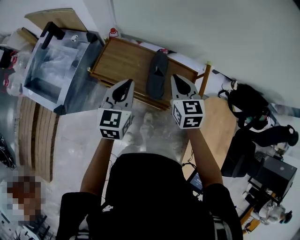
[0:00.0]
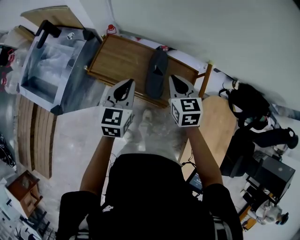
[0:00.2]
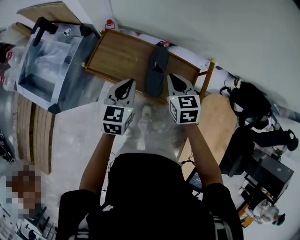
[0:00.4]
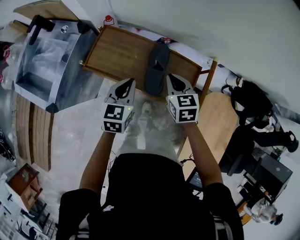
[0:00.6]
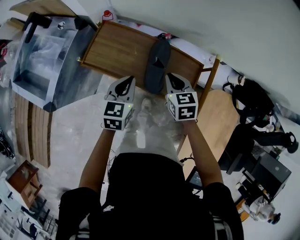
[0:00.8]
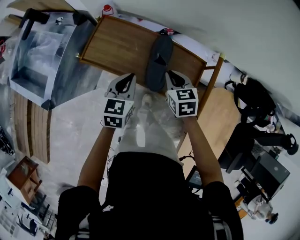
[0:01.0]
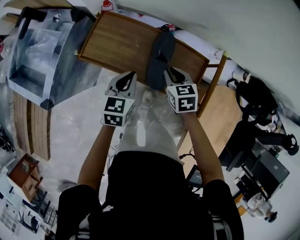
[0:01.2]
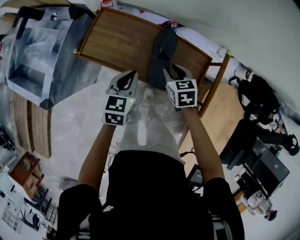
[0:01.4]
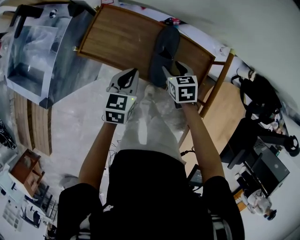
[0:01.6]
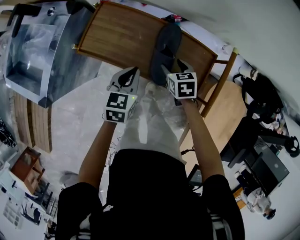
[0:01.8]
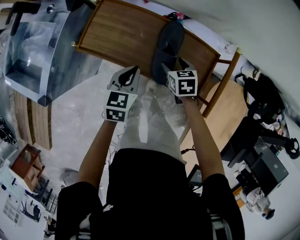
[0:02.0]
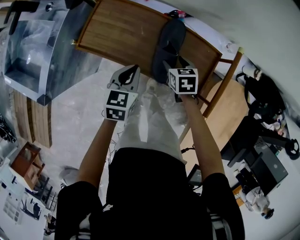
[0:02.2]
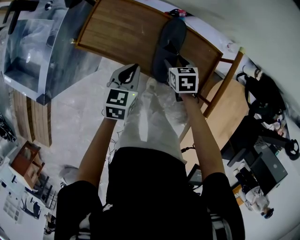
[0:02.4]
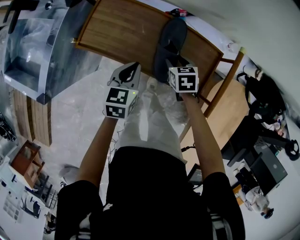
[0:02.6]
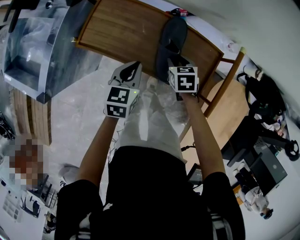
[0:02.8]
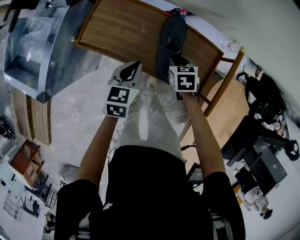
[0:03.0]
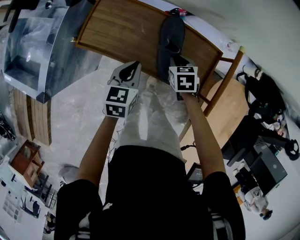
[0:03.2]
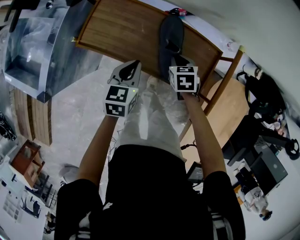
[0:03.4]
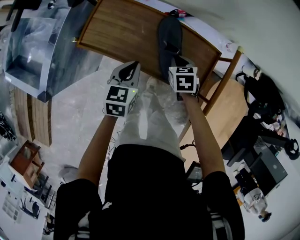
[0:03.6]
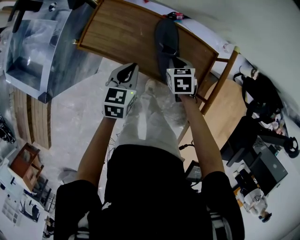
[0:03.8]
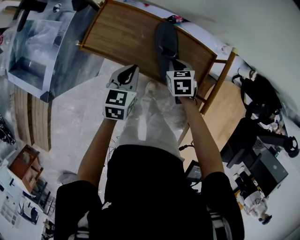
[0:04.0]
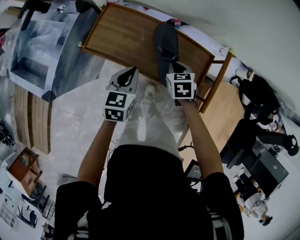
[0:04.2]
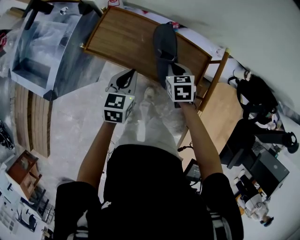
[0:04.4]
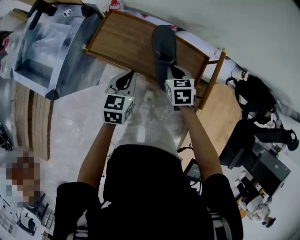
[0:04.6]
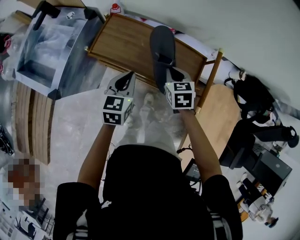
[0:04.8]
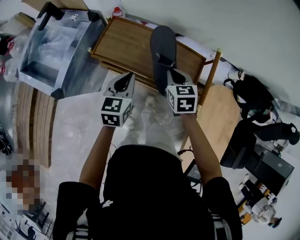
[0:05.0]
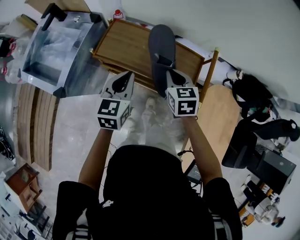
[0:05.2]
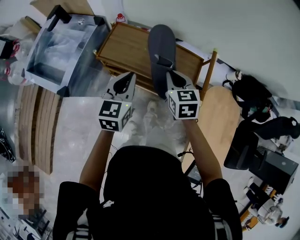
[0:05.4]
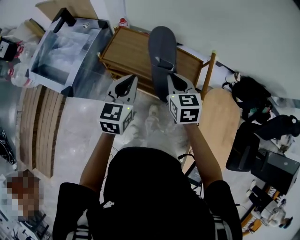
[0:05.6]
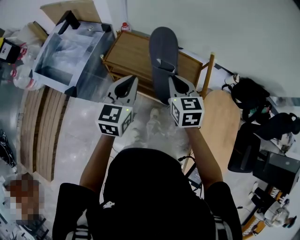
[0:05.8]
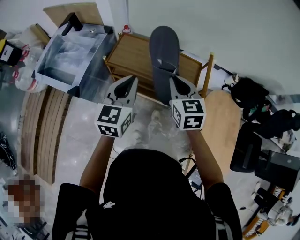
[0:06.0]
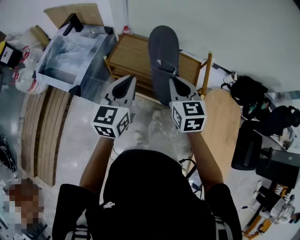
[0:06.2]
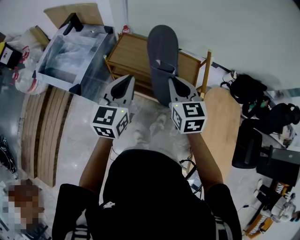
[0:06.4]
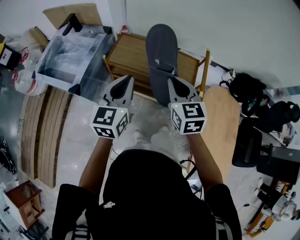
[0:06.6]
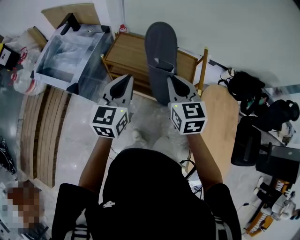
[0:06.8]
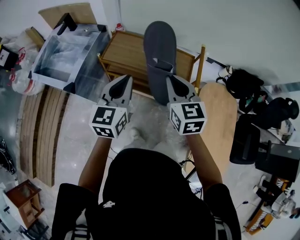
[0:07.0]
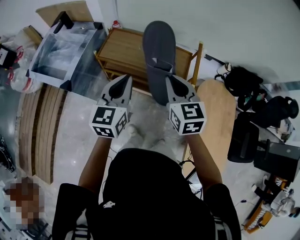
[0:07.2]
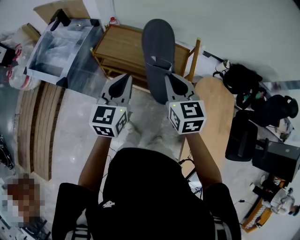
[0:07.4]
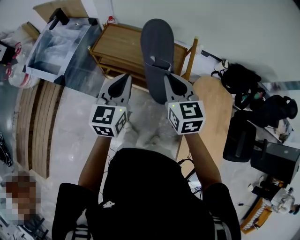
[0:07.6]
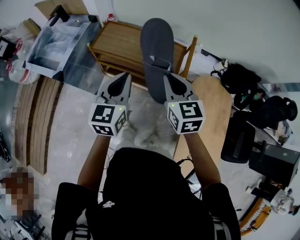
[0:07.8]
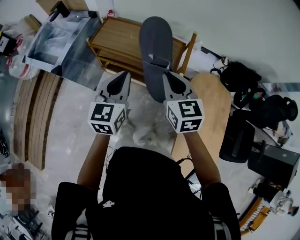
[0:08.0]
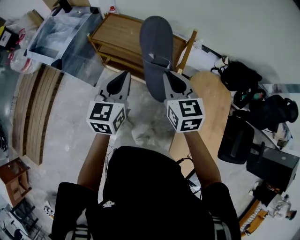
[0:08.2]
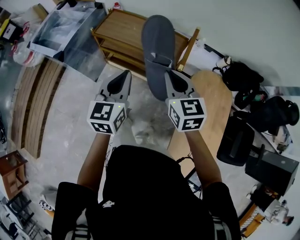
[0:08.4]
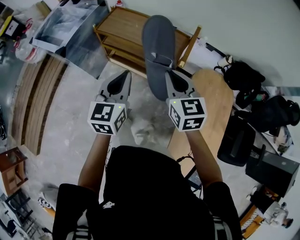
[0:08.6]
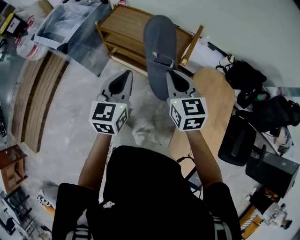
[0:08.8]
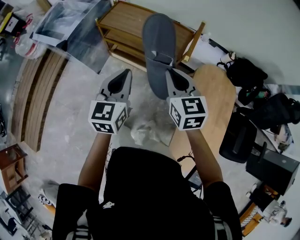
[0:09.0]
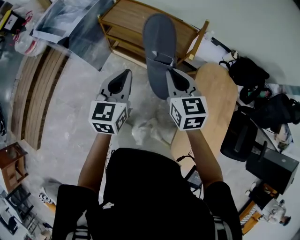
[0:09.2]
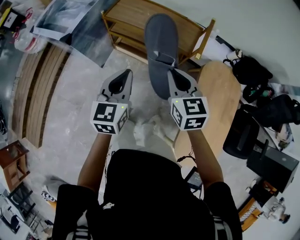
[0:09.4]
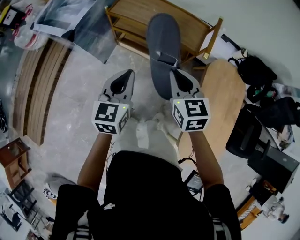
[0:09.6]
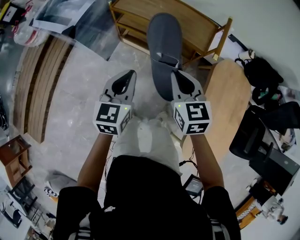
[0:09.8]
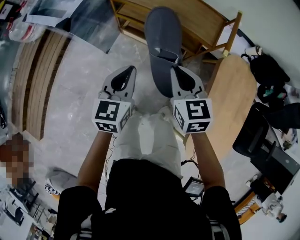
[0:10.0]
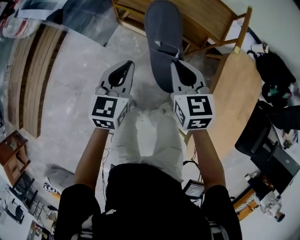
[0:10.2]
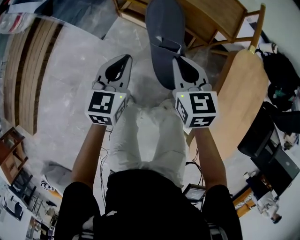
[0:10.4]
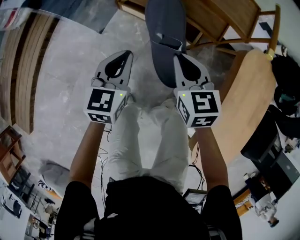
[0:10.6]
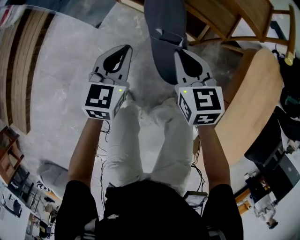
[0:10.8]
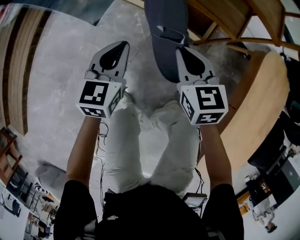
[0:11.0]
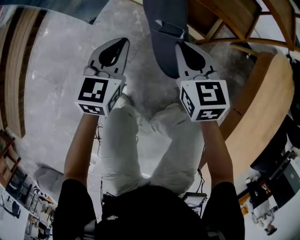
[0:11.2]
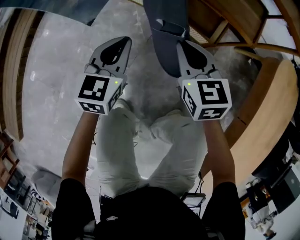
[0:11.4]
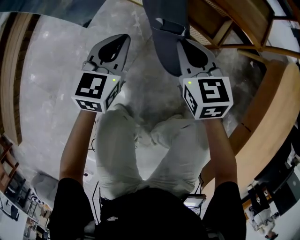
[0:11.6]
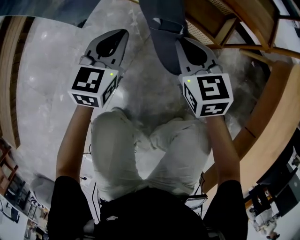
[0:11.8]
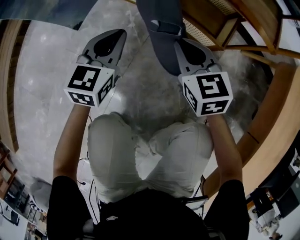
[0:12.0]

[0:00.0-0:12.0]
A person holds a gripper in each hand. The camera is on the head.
0:00.0 to 0:01.6: The grippers both shift downward by about 25 cm. The left gripper changes its angle by some 20 degrees. The right gripper turns by roughly 30 degrees, and opens.
0:01.6 to 0:03.0: The right gripper moves downward, roughly 5 cm, and closes up.
0:03.0 to 0:04.4: The grippers both shift upward by about 10 cm. The right gripper closes.
0:04.4 to 0:06.0: The two grippers go approximately 30 cm upward and backward. The left gripper swivels roughly 20 degrees. The right gripper swivels roughly 30 degrees.
0:06.0 to 0:07.6: Both grippers travel together to the right and backward, some 10 cm.
0:07.6 to 0:09.0: The grippers both shift backward by roughly 15 cm.
0:09.0 to 0:10.4: Both grippers travel together downward and to the left, roughly 30 cm.
0:10.4 to 0:12.0: Both grippers move downward, some 40 cm.

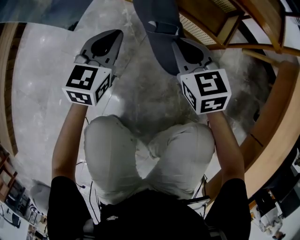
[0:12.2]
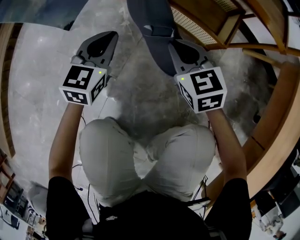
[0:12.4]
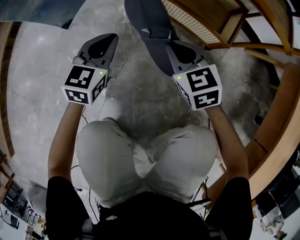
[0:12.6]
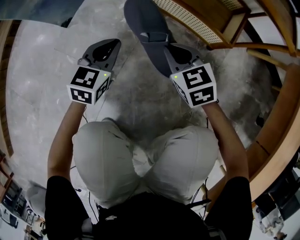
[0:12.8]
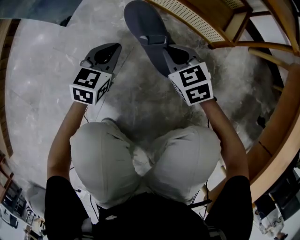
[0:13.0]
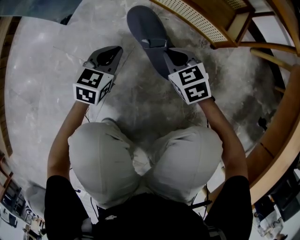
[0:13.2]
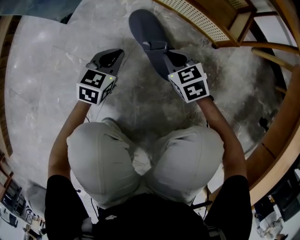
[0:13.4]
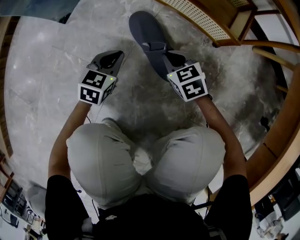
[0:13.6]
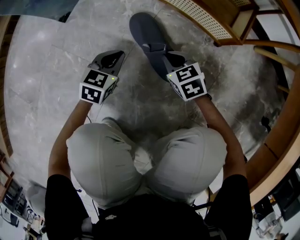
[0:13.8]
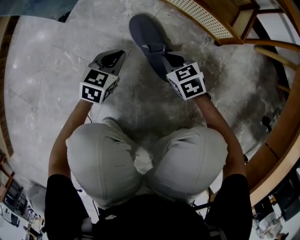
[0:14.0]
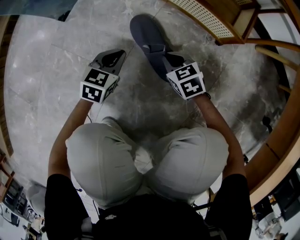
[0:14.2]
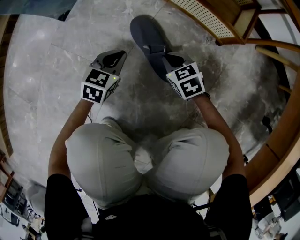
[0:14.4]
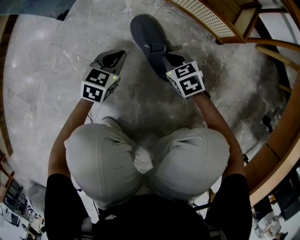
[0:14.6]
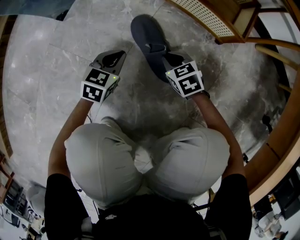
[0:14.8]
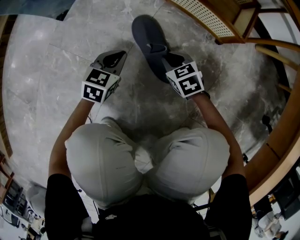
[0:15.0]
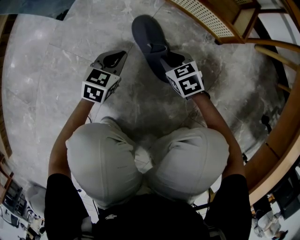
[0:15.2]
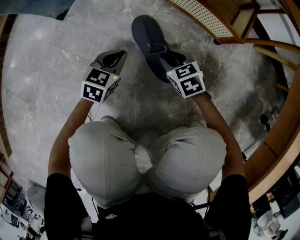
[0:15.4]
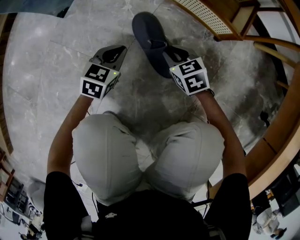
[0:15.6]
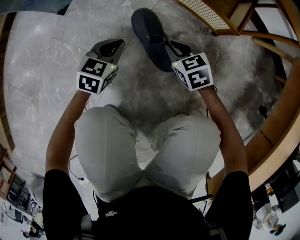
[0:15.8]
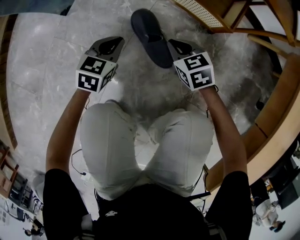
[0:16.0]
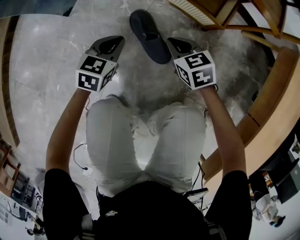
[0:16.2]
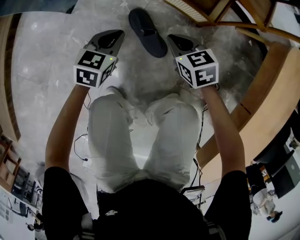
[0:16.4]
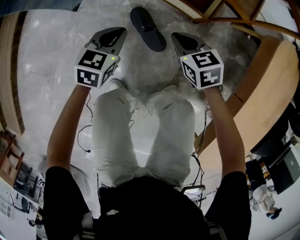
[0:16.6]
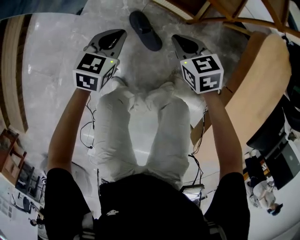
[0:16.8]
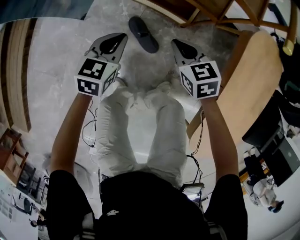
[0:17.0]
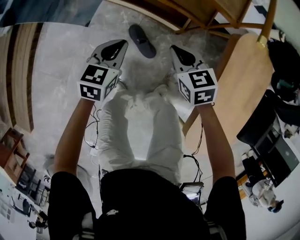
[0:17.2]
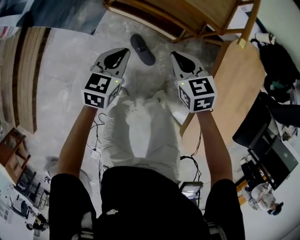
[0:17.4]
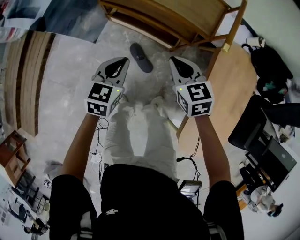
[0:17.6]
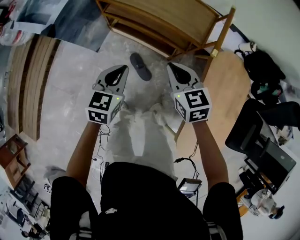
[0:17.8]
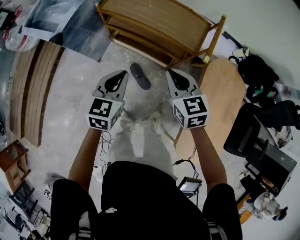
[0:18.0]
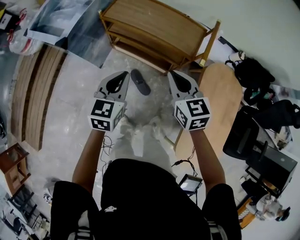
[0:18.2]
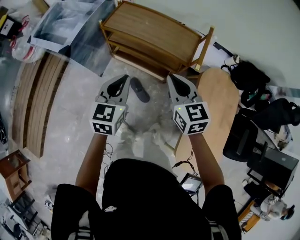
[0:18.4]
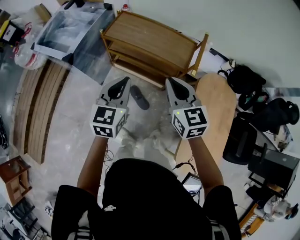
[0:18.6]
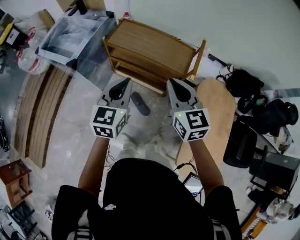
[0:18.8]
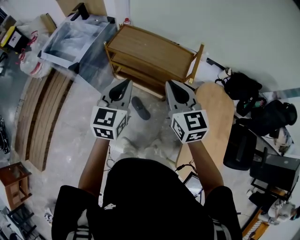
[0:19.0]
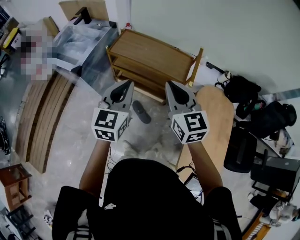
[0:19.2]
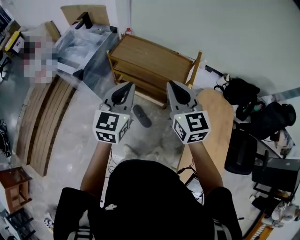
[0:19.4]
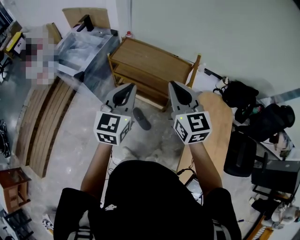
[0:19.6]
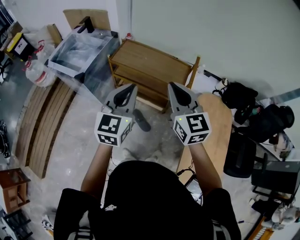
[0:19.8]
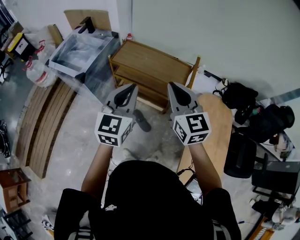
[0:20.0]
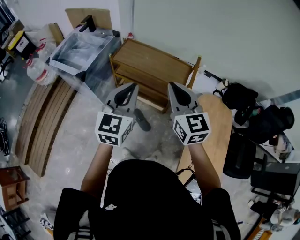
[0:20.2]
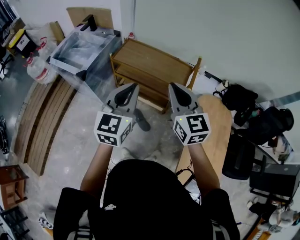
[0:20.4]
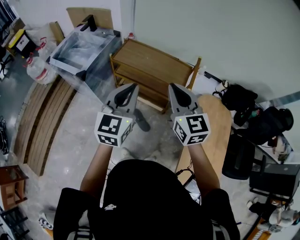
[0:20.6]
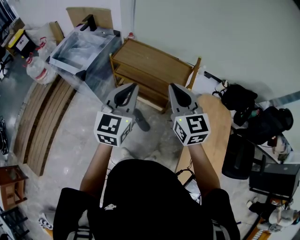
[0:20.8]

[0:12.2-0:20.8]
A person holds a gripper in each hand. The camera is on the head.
0:12.2 to 0:13.6: Both grippers move downward, some 20 cm.
0:13.6 to 0:15.0: The right gripper shifts roughly 5 cm downward.
0:15.0 to 0:16.6: The two grippers go some 30 cm upward.
0:16.6 to 0:18.0: The two grippers go approximately 50 cm upward. The right gripper turns by about 20 degrees.
0:18.0 to 0:19.4: Both grippers move upward, some 25 cm. The left gripper changes its angle by roughly 20 degrees, while the right gripper swivels about 20 degrees.
0:19.4 to 0:20.8: There are only small adjustments of the grippers.

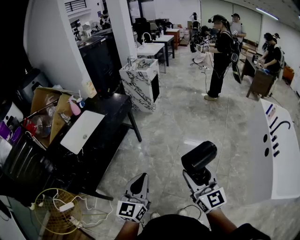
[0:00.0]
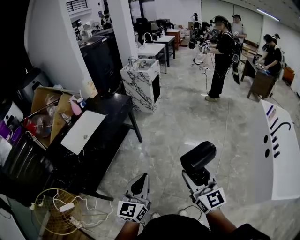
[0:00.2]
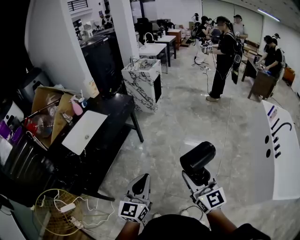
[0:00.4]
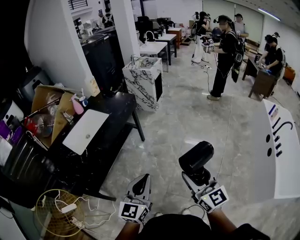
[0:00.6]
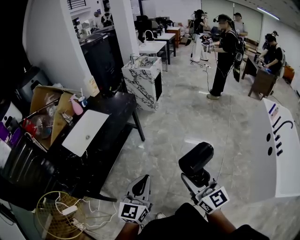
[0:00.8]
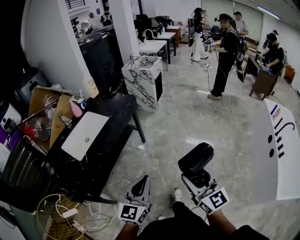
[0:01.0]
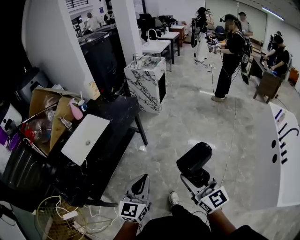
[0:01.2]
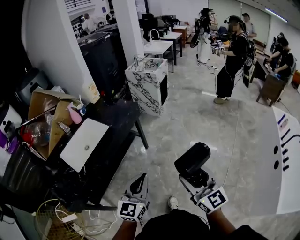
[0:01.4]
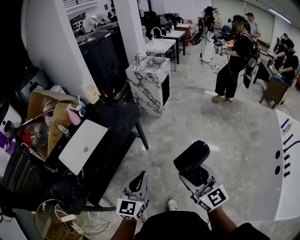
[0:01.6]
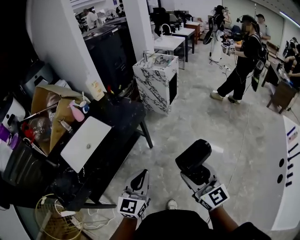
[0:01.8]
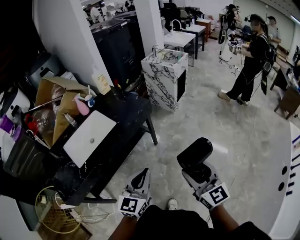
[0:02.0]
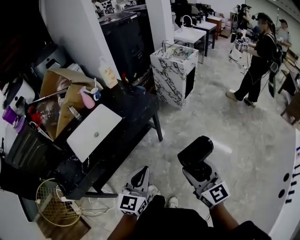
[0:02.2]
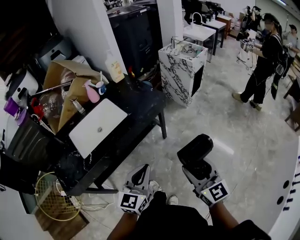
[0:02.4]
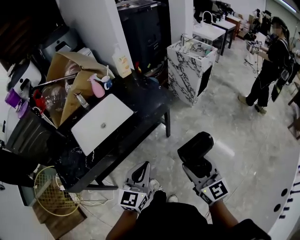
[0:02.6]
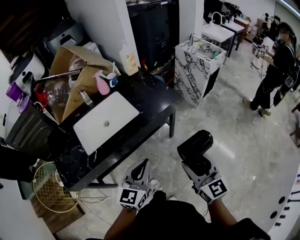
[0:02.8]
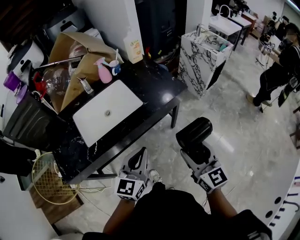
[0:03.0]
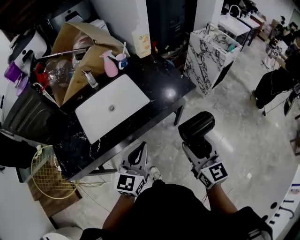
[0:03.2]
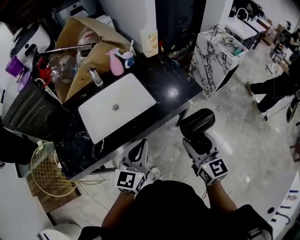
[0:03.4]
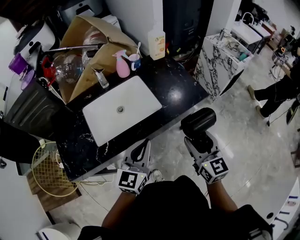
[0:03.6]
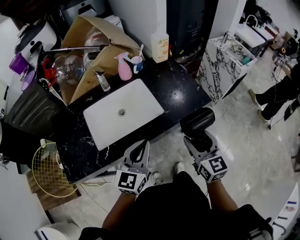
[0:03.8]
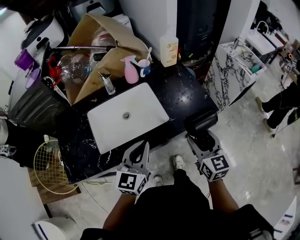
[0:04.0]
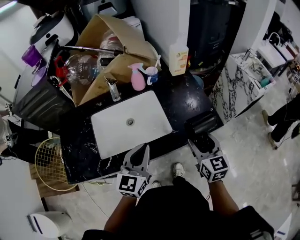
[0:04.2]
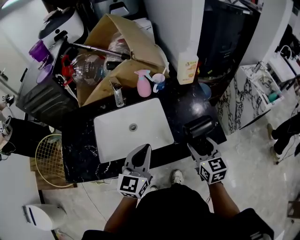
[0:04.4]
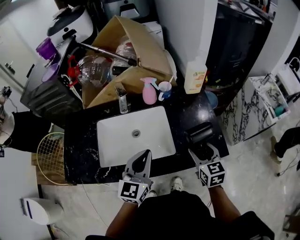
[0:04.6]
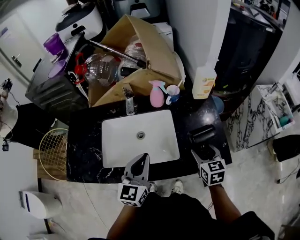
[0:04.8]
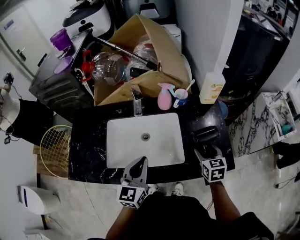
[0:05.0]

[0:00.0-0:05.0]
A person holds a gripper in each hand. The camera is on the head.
0:00.0 to 0:01.6: The grippers both shift forward by some 20 cm.
0:01.6 to 0:03.4: Both grippers move forward and to the left, about 35 cm. The left gripper swivels some 30 degrees; the right gripper swivels approximately 20 degrees.
0:03.4 to 0:05.0: The right gripper moves forward, some 35 cm, and changes its angle by about 30 degrees; the left gripper is displaced forward and to the left by some 20 cm, and turns by roughly 30 degrees.
